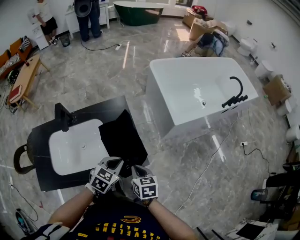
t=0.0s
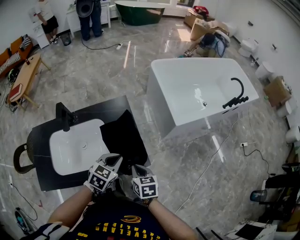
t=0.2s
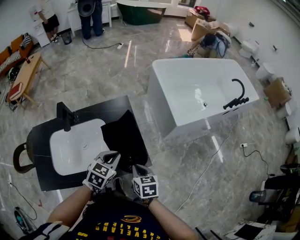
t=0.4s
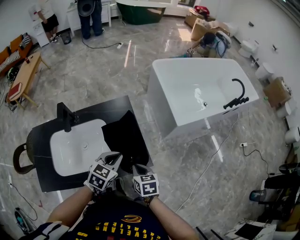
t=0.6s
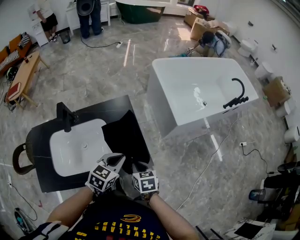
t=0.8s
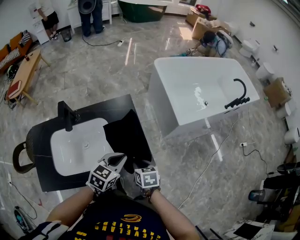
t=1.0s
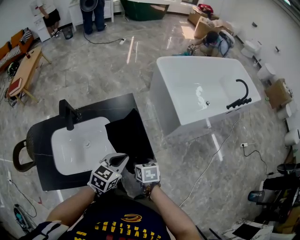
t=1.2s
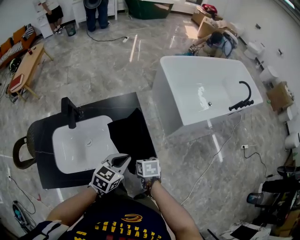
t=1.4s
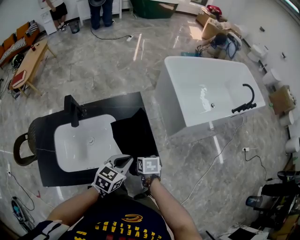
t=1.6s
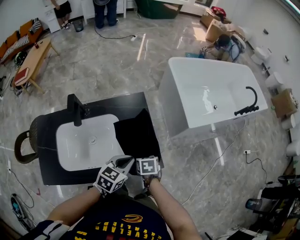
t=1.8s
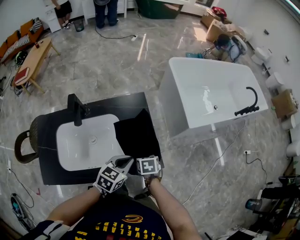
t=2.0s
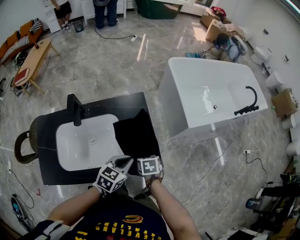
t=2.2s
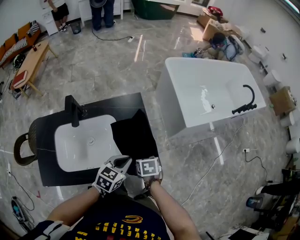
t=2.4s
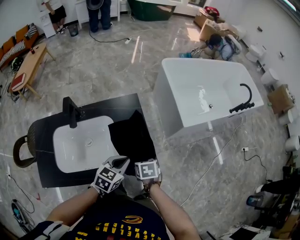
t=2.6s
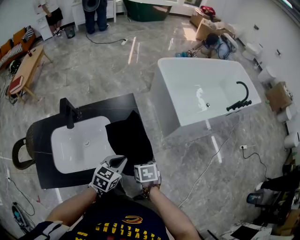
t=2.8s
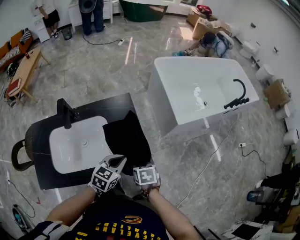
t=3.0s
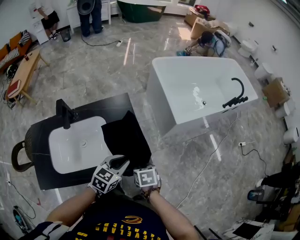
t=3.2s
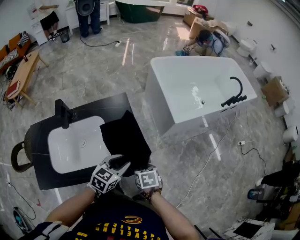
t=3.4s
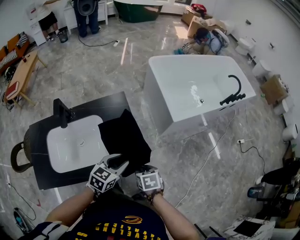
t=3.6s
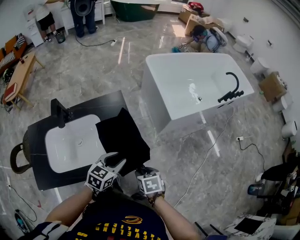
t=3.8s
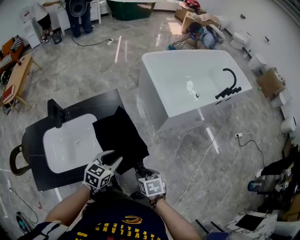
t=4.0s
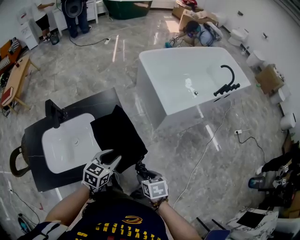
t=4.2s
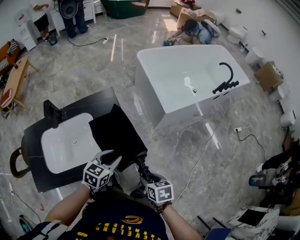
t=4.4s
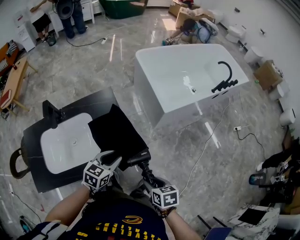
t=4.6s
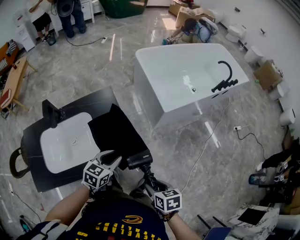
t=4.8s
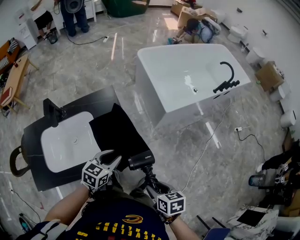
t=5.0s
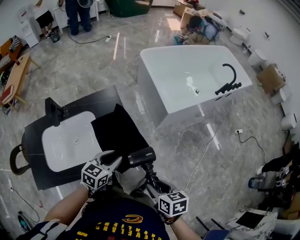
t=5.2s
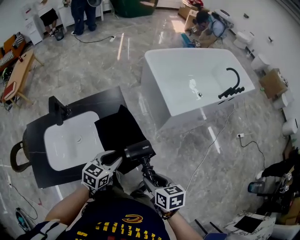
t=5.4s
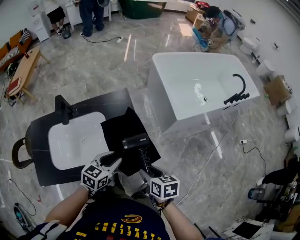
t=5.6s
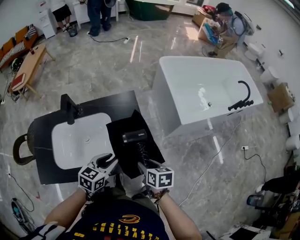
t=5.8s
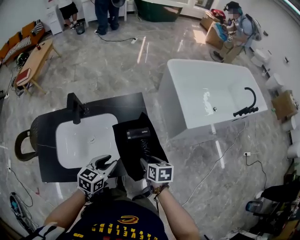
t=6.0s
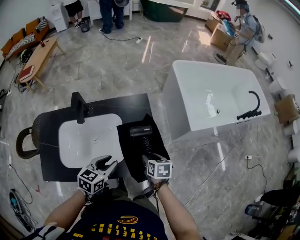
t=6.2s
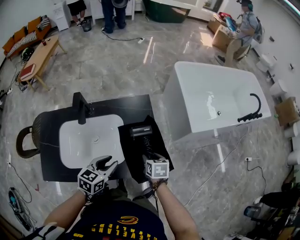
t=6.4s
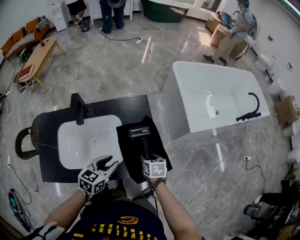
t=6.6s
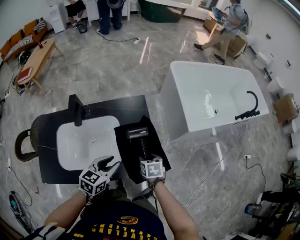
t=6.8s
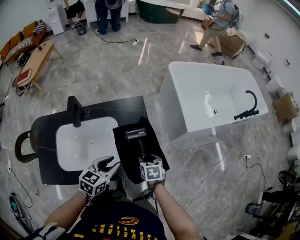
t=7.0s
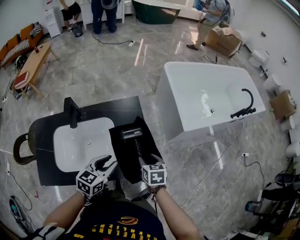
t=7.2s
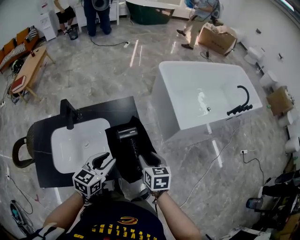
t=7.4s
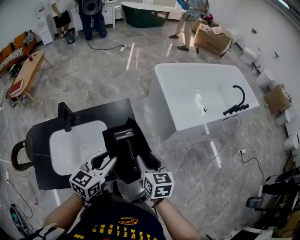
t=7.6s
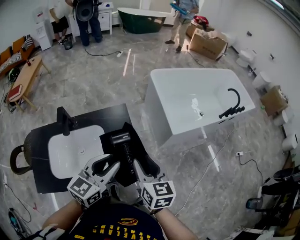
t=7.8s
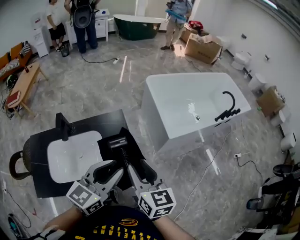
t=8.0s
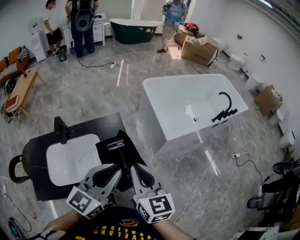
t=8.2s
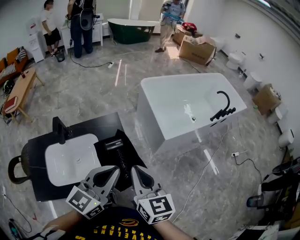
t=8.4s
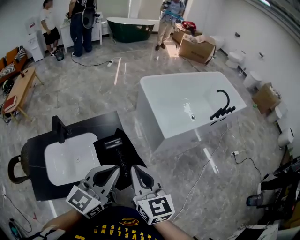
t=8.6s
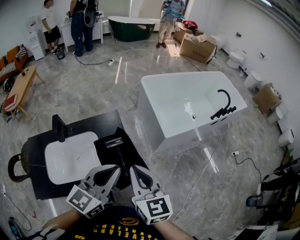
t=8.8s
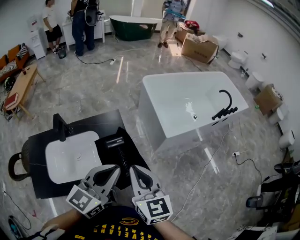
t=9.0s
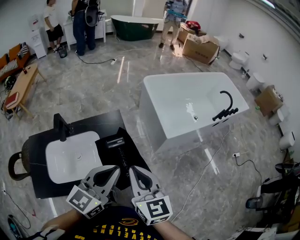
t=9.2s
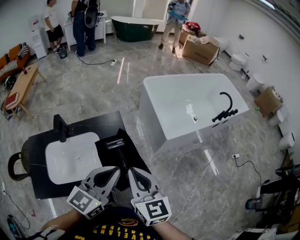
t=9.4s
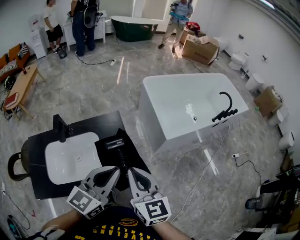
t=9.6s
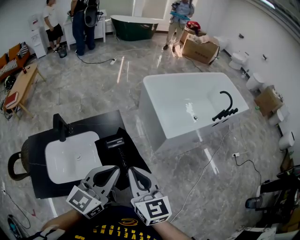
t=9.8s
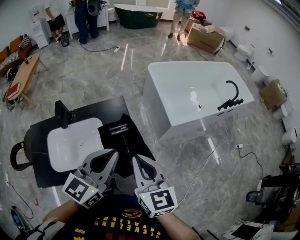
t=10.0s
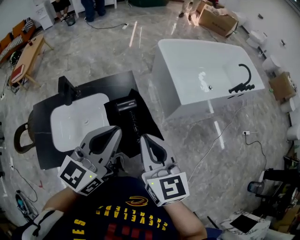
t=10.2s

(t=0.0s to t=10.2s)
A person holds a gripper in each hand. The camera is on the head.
t=0.0s - t=1.4s: The right gripper heads downward and forward, covering roughly 10 cm, and opens.
t=1.4s - t=3.0s: The right gripper moves roughly 5 cm.
t=3.0s - t=4.4s: The left gripper opens its fingers. The right gripper heads backward and to the right, covering approximately 15 cm.
t=4.4s - t=5.8s: The right gripper moves forward and to the left, roughly 15 cm; the left gripper heads to the left, covering some 10 cm.
t=5.8s - t=7.2s: The right gripper goes roughly 5 cm forward.
t=7.2s - t=8.8s: The left gripper goes about 25 cm upward and to the right, rotates some 30 degrees, and closes its fingers. Meanwhile the right gripper moves upward, about 30 cm, points its fingers approximately 40 degrees further upward, and closes up.
t=8.8s - t=10.2s: There are only small adjustments of the grippers.

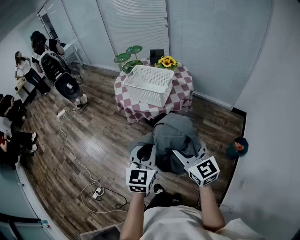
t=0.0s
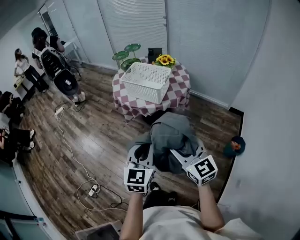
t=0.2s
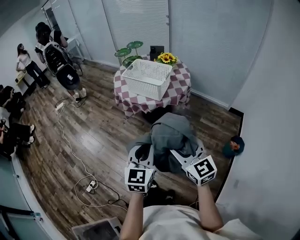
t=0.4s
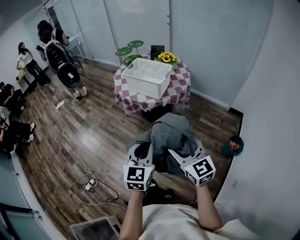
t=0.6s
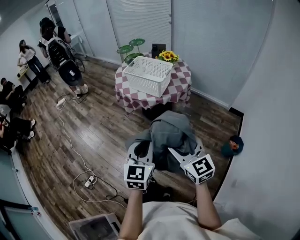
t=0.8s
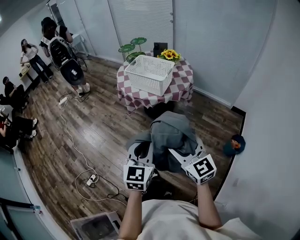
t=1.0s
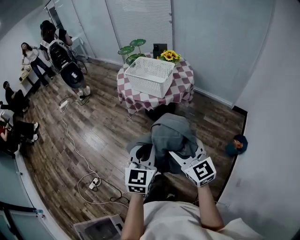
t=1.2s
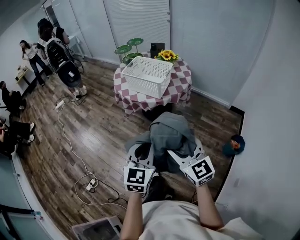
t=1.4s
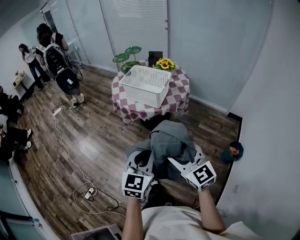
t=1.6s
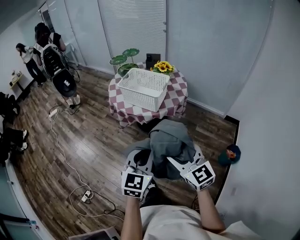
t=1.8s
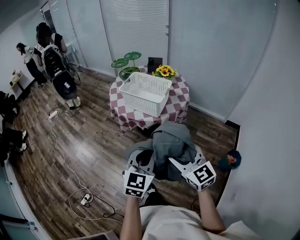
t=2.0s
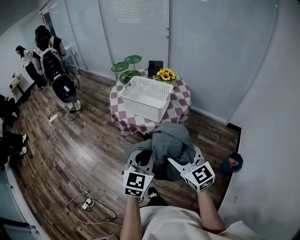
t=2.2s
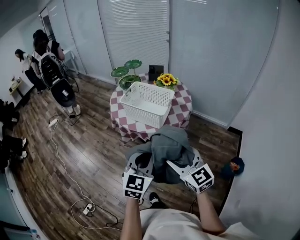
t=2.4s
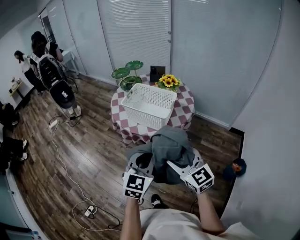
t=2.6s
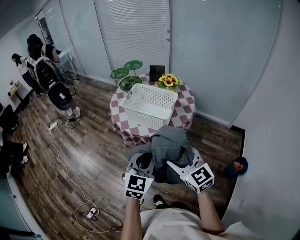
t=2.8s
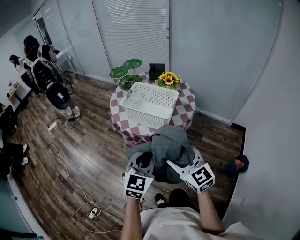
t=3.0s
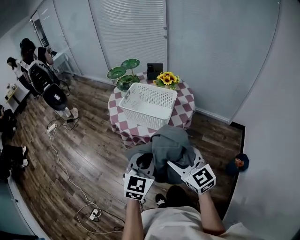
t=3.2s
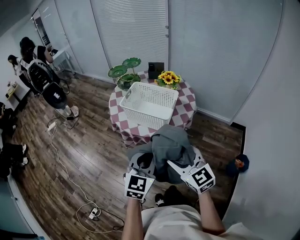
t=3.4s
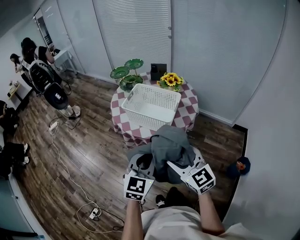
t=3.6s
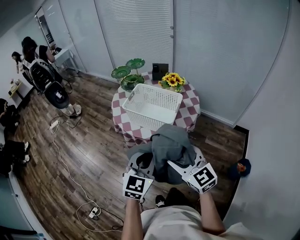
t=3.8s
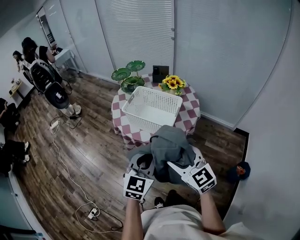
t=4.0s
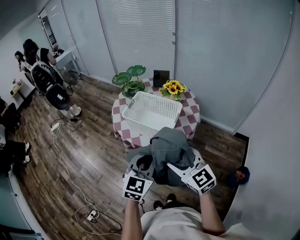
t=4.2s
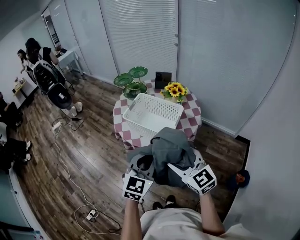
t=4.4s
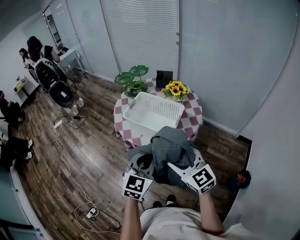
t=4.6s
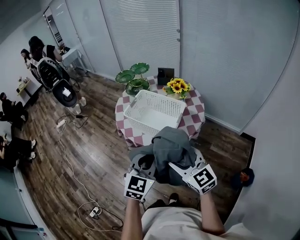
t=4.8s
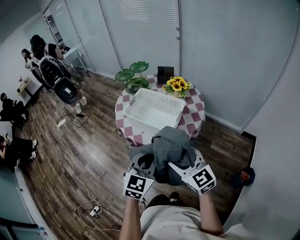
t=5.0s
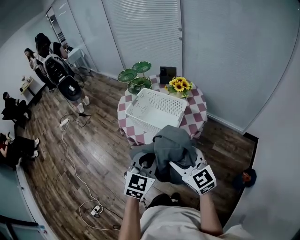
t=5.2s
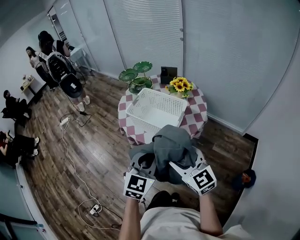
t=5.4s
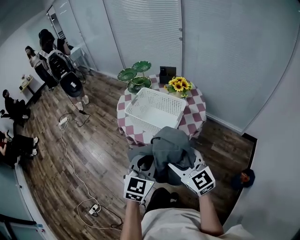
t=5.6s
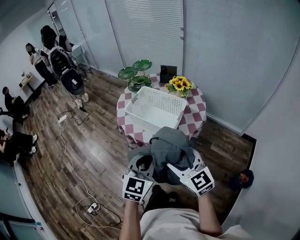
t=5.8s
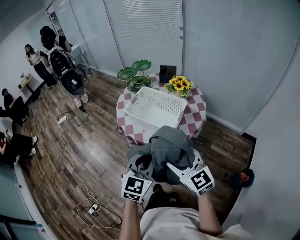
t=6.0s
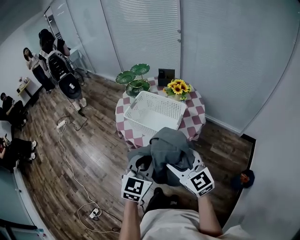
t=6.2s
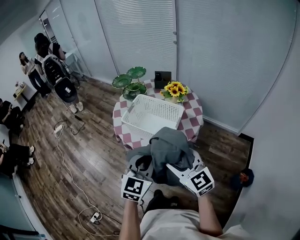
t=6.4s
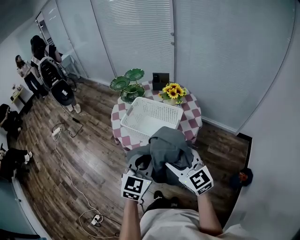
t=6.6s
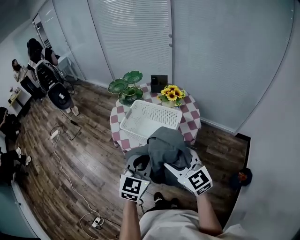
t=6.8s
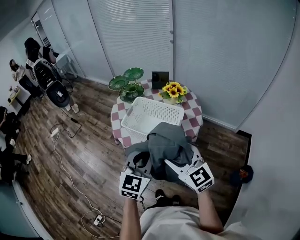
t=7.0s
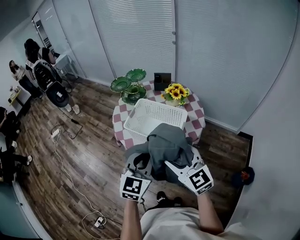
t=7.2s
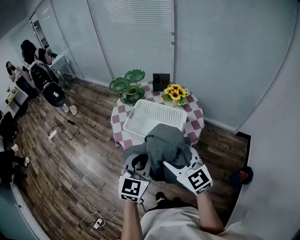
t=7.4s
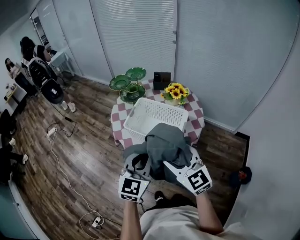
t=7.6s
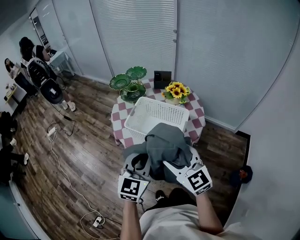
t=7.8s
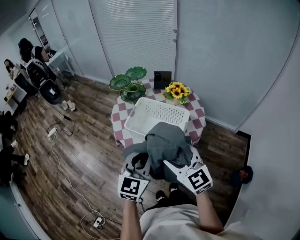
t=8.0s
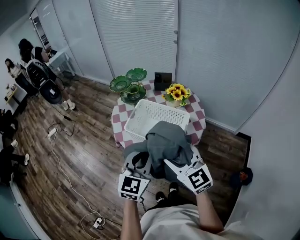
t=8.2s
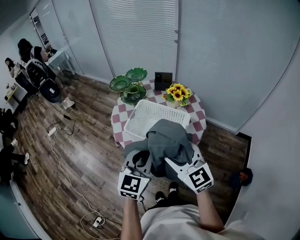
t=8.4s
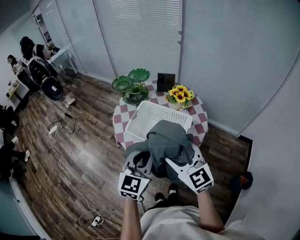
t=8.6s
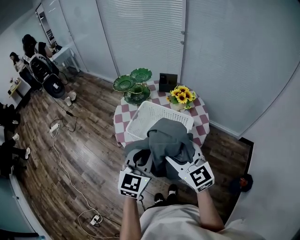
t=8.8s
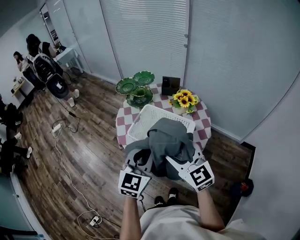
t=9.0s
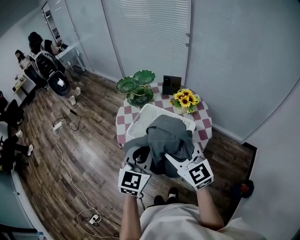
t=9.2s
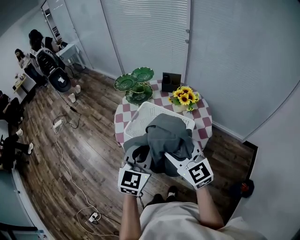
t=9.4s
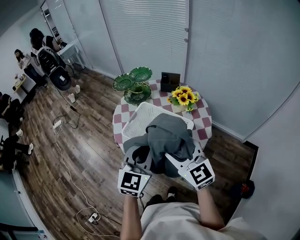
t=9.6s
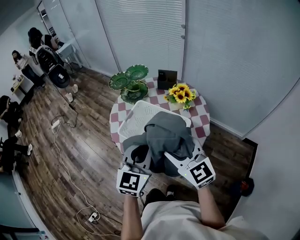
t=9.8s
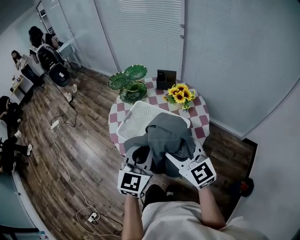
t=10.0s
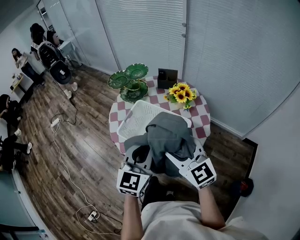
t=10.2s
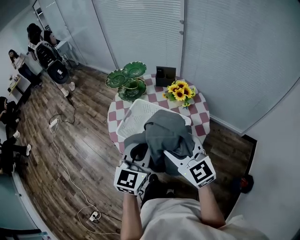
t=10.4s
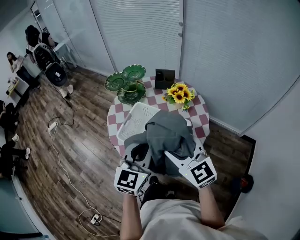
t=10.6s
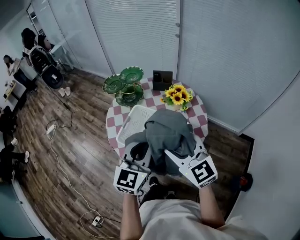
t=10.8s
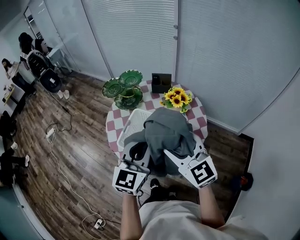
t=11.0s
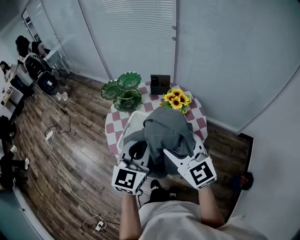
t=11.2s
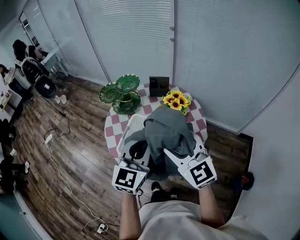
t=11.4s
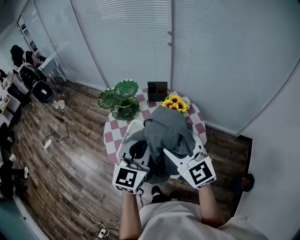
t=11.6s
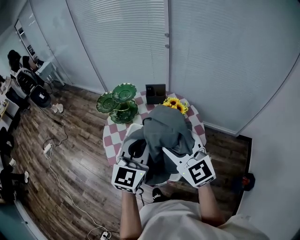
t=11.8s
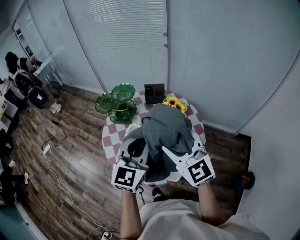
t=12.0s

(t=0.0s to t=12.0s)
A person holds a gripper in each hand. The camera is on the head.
t=1.6s - t=3.0s: The grippers both shift forward by approximately 20 cm.
t=3.0s - t=4.4s: Both grippers move forward, about 10 cm.
t=4.4s - t=6.0s: There are only small adjustments of the grippers.
t=6.0s - t=7.6s: The two grippers go approximately 10 cm forward and to the left.
t=7.6s - t=9.0s: The two grippers go approximately 10 cm forward.
t=9.0s - t=10.4s: The right gripper changes place by roughly 5 cm; the left gripper ends up approximately 5 cm from where it was.
t=10.4s - t=12.0s: Both grippers travel together forward and upward, about 15 cm.

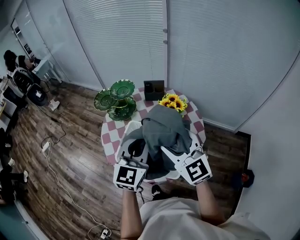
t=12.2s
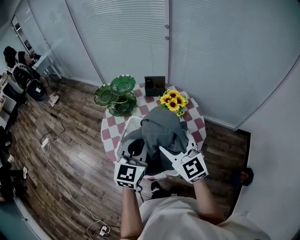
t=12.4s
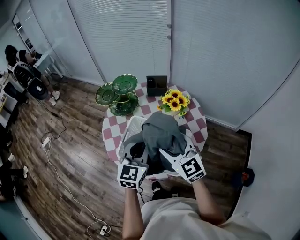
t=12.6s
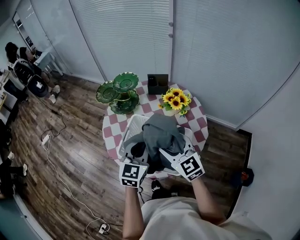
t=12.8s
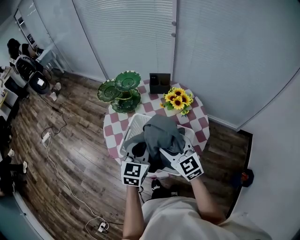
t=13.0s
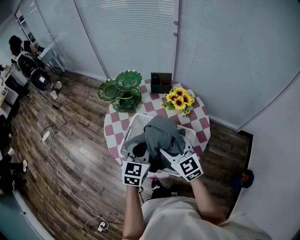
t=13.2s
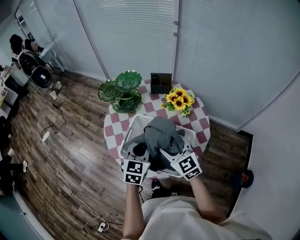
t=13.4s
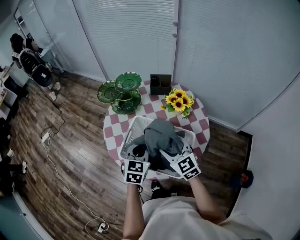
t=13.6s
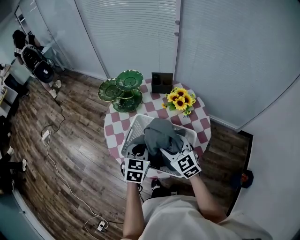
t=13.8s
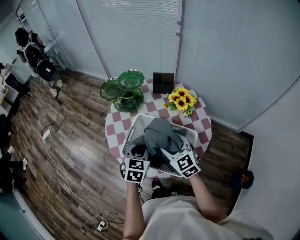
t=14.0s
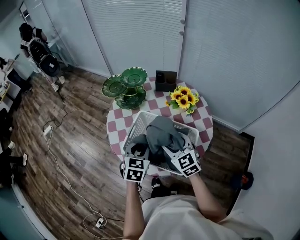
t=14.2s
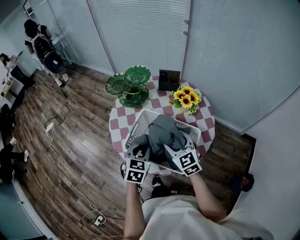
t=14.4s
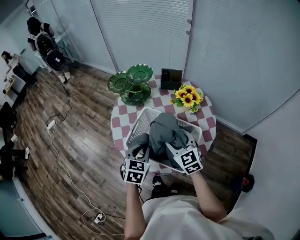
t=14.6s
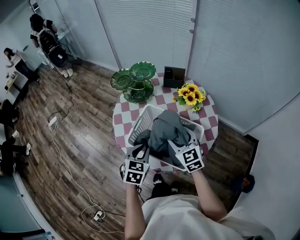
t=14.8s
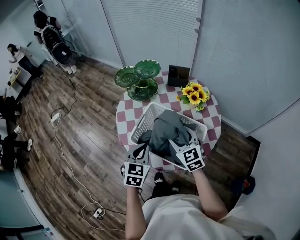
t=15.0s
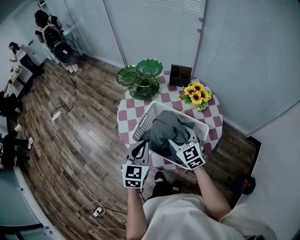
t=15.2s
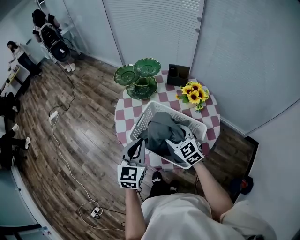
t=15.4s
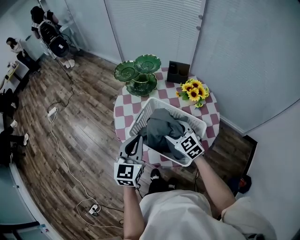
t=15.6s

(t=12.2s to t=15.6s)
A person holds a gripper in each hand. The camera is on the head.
t=12.2s - t=13.8s: The grippers both shift downward by some 15 cm. The left gripper swivels roughly 30 degrees.
t=13.8s - t=15.6s: The left gripper travels to the left, upward and backward by about 10 cm, and rotates about 20 degrees. Meanwhile the right gripper changes place by approximately 5 cm.
